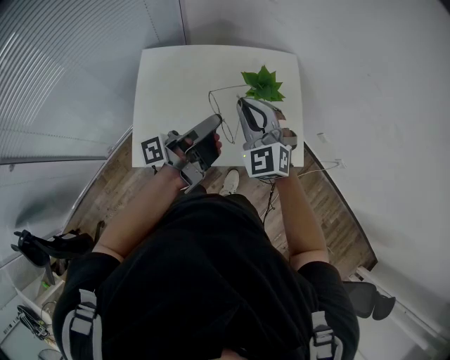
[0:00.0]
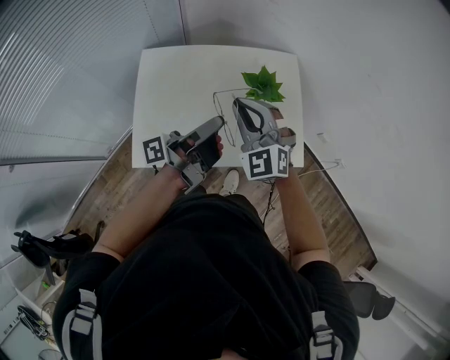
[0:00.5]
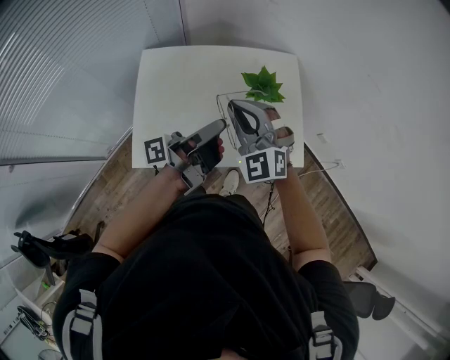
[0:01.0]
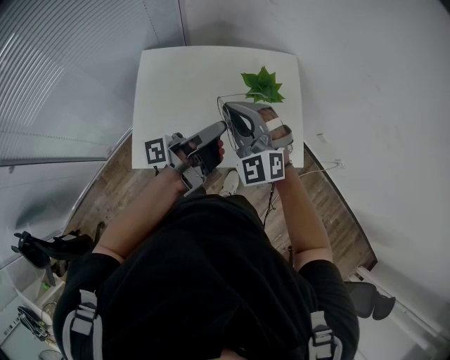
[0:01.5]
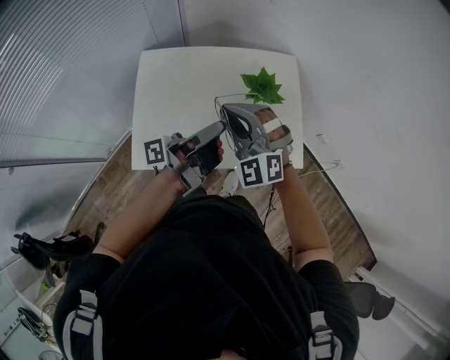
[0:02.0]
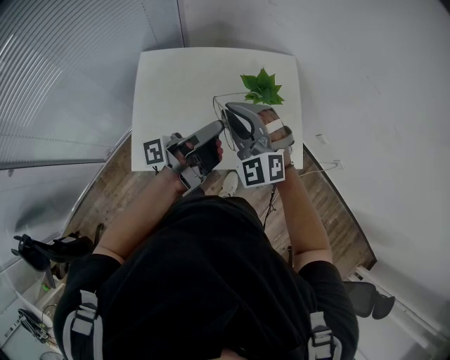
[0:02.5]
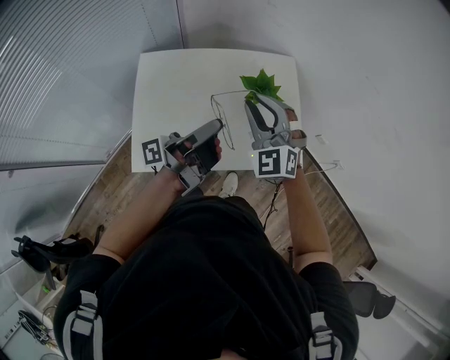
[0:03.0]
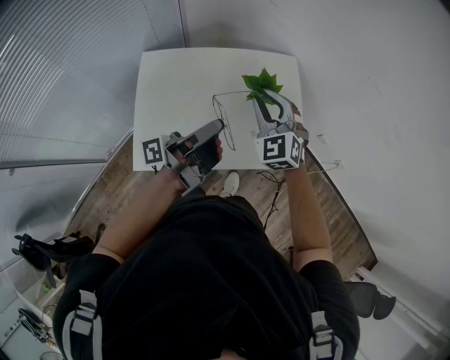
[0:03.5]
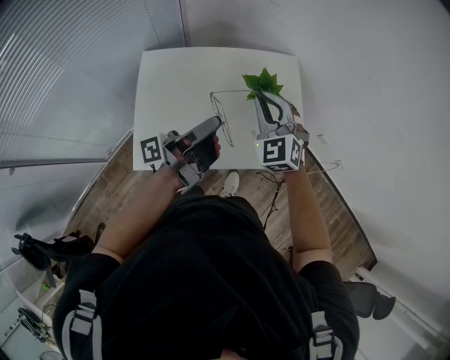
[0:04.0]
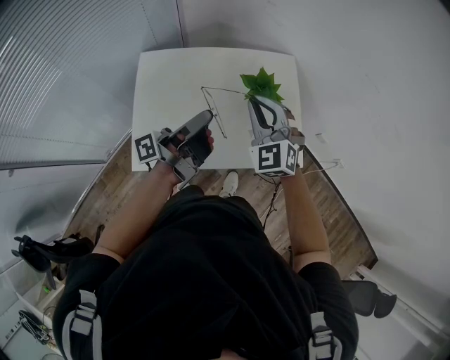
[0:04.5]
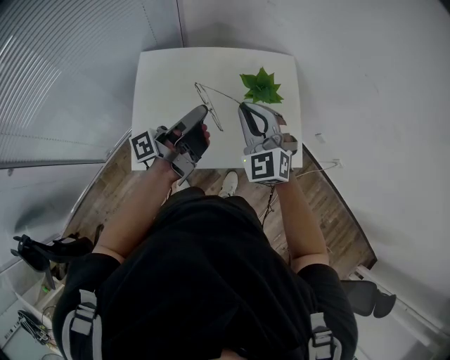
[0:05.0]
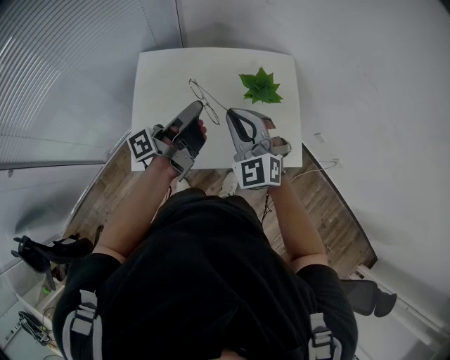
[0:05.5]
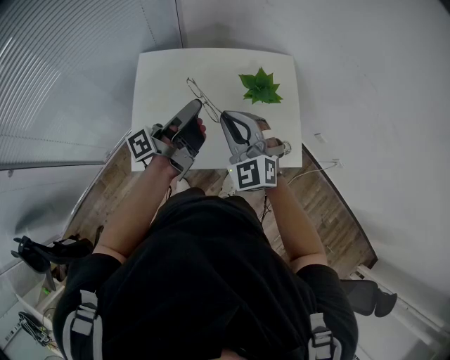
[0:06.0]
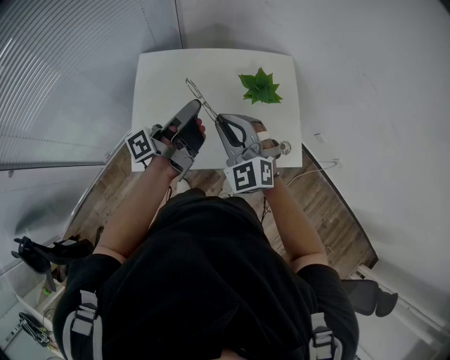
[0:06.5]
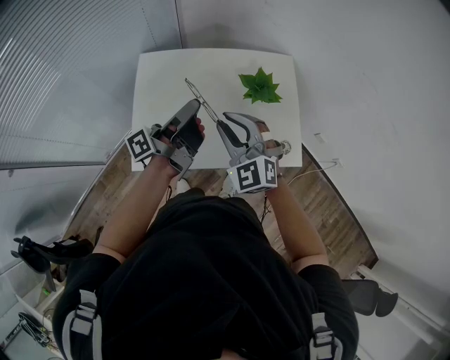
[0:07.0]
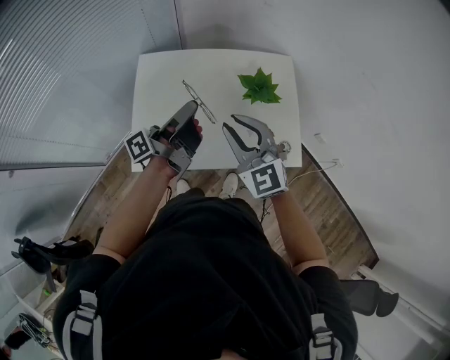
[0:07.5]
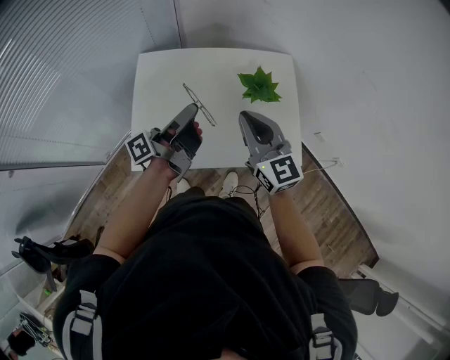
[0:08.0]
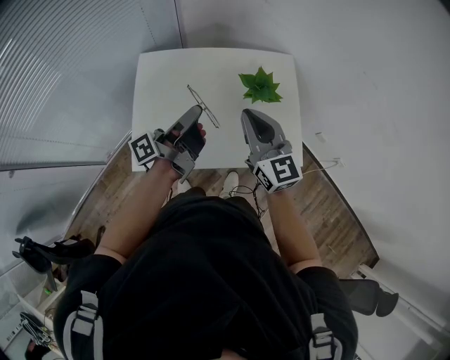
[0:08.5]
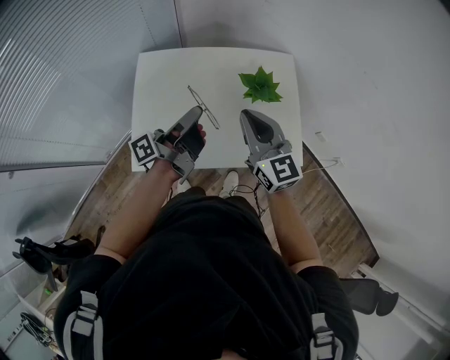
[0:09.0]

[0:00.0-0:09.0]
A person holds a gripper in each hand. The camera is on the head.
0:00.0 to 0:02.0: The right gripper ends up about 5 cm from where it was.
0:02.0 to 0:04.5: The right gripper changes place by approximately 10 cm, and turns by approximately 20 degrees.
0:04.5 to 0:07.0: The right gripper moves approximately 10 cm.
0:07.0 to 0:09.0: The right gripper moves approximately 5 cm, rotates some 40 degrees, and closes its fingers.

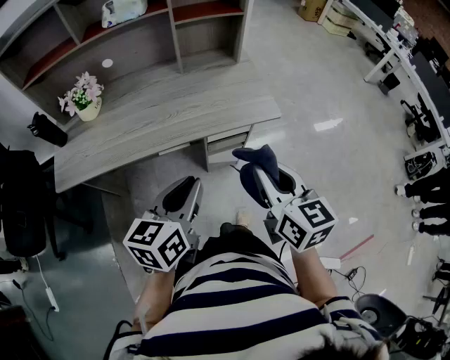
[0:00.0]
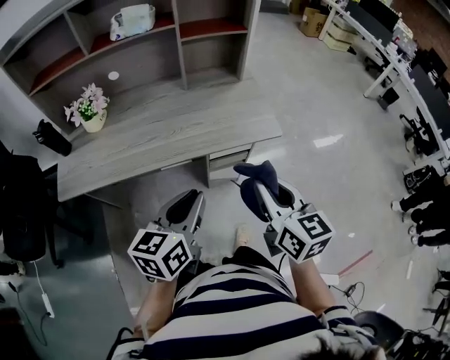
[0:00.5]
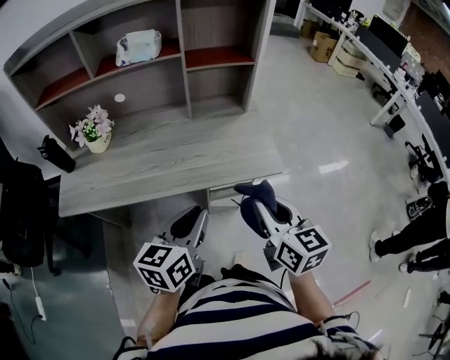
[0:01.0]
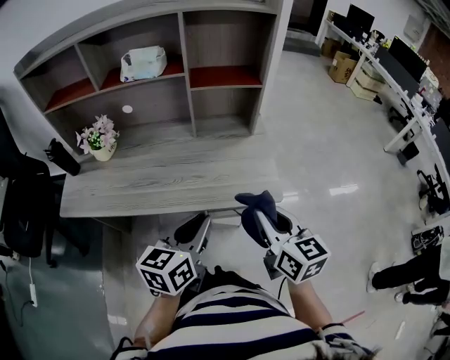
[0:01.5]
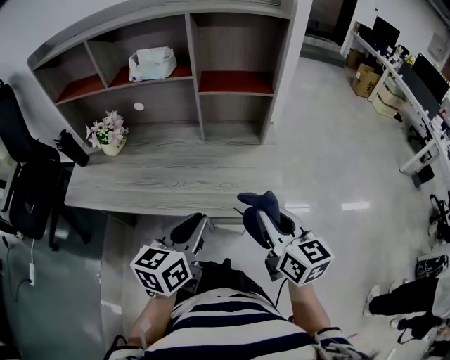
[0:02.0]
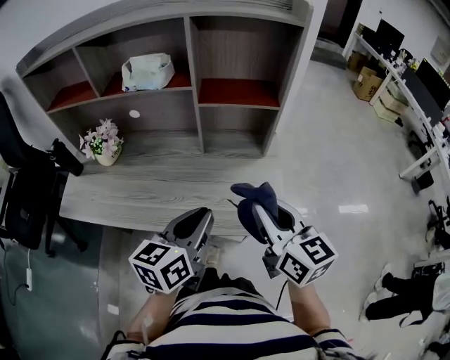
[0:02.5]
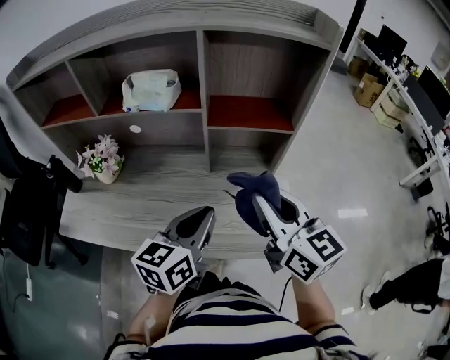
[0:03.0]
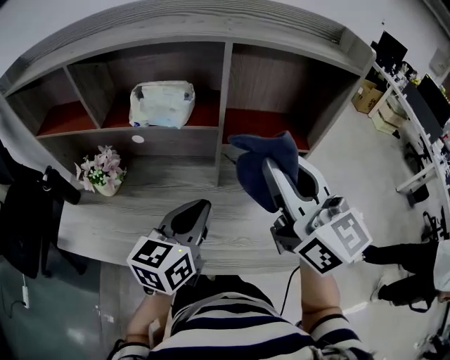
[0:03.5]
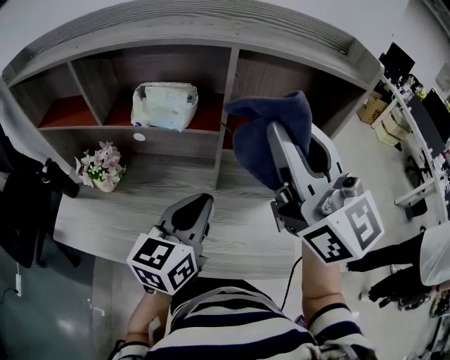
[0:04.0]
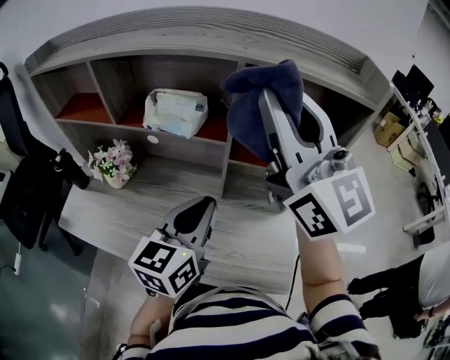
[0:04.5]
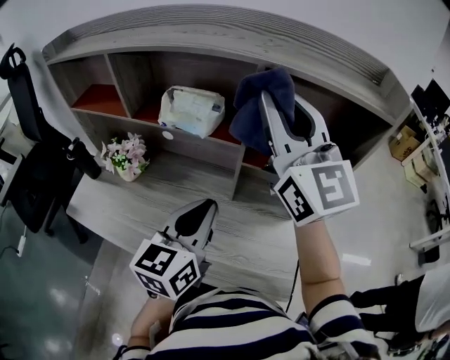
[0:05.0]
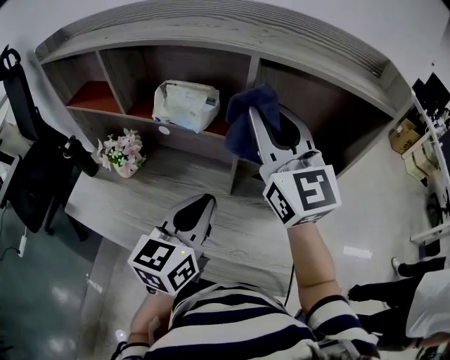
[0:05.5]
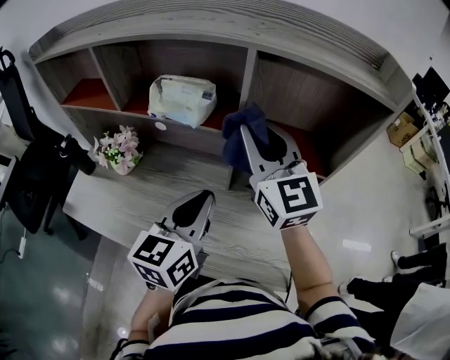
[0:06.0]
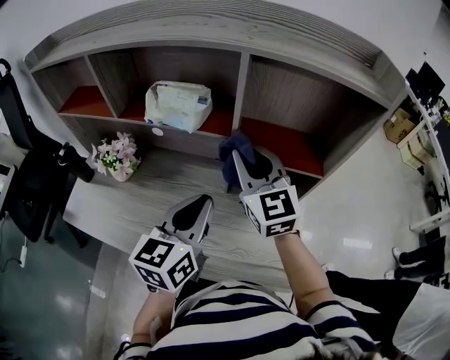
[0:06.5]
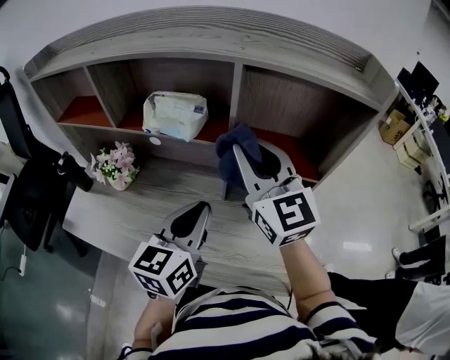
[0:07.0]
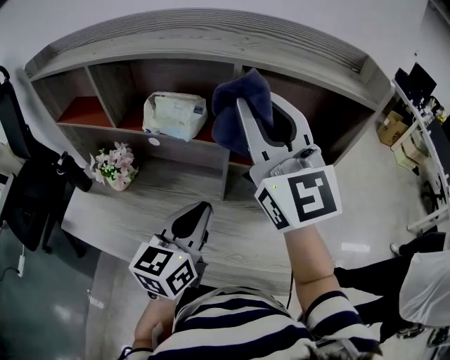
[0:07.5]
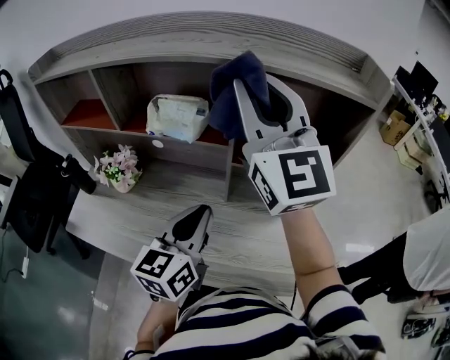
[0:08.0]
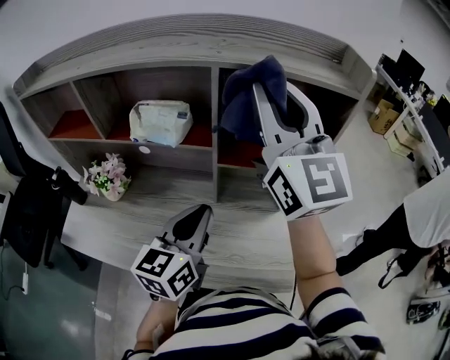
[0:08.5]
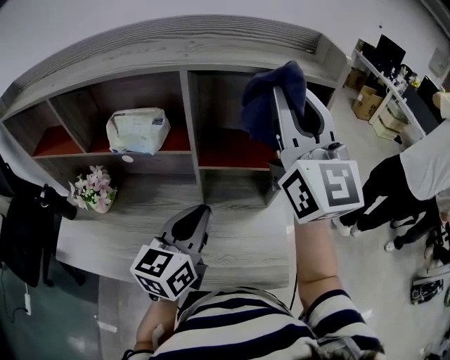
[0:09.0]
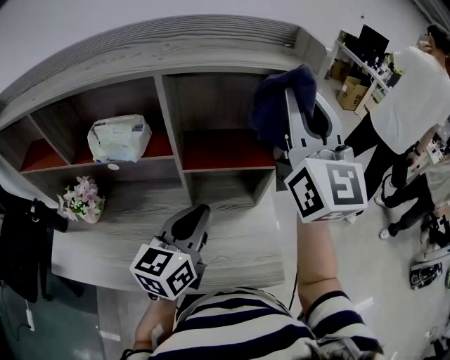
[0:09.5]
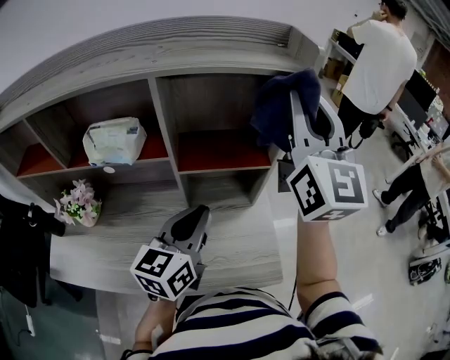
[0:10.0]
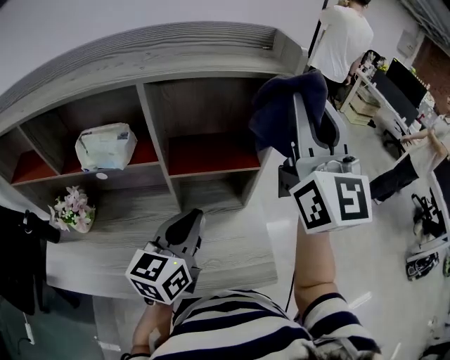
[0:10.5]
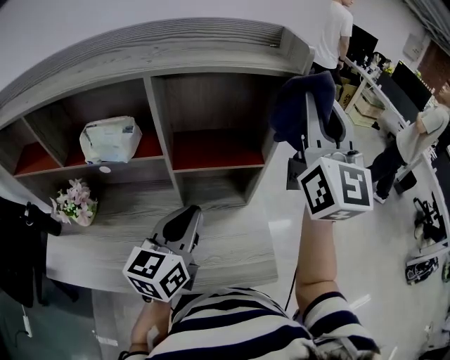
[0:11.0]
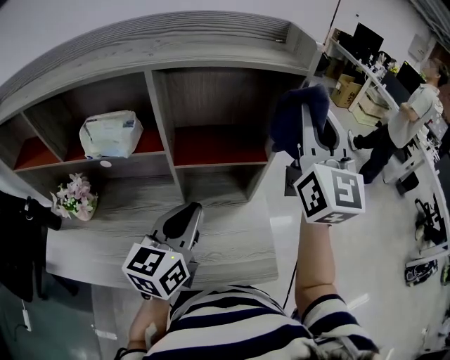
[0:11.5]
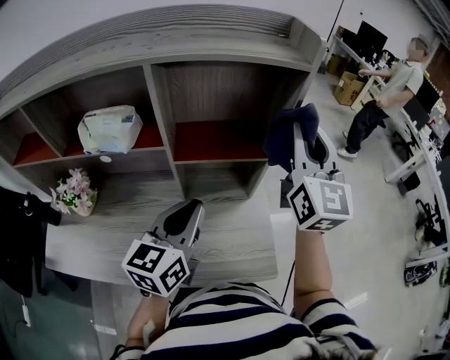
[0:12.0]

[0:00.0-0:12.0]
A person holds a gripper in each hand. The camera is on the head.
0:00.0 to 0:02.0: The right gripper is displaced forward by about 15 cm; the left gripper moves forward and to the right, some 15 cm.
0:02.0 to 0:04.0: The right gripper moves upward and forward, approximately 35 cm, and turns by about 40 degrees. The left gripper goes some 20 cm forward.
0:04.0 to 0:06.0: The right gripper is displaced downward and forward by approximately 15 cm.
0:06.0 to 0:08.0: The right gripper moves upward, approximately 15 cm.
0:08.0 to 0:10.0: The right gripper changes place by about 20 cm, and rotates approximately 30 degrees; the left gripper changes place by roughly 10 cm.
0:10.0 to 0:12.0: The right gripper is displaced downward by roughly 10 cm.

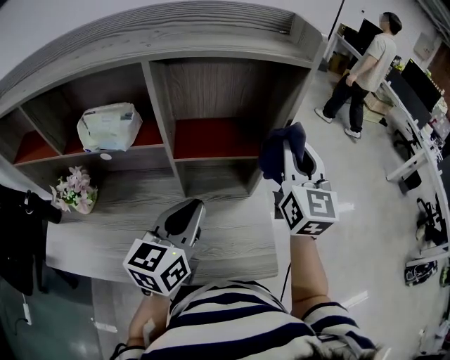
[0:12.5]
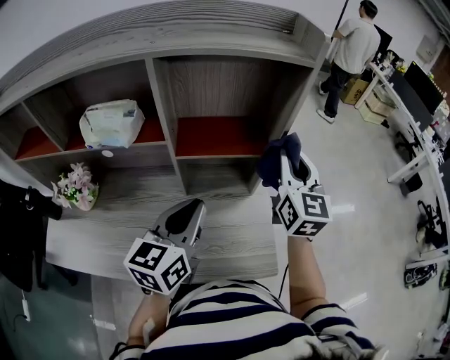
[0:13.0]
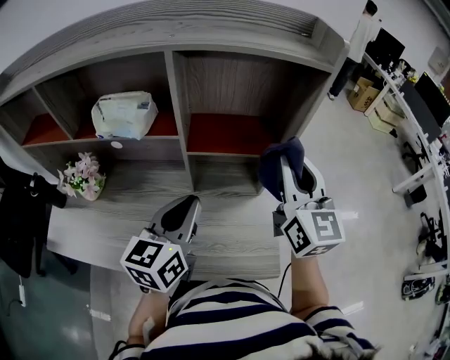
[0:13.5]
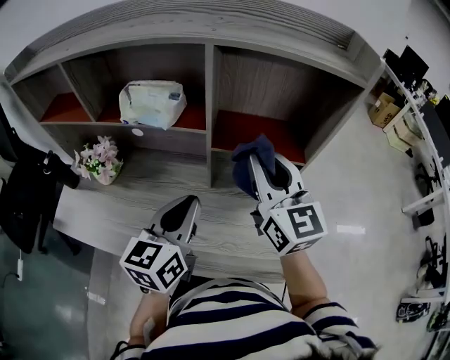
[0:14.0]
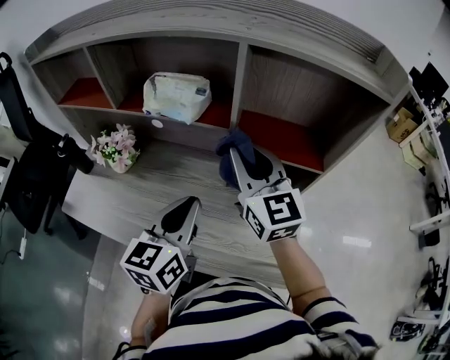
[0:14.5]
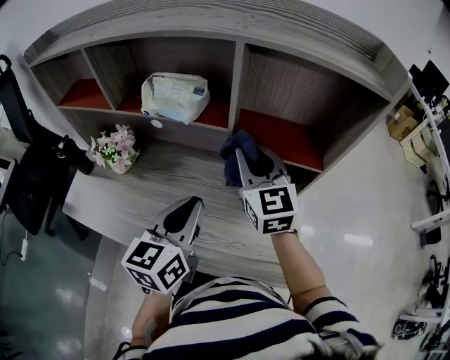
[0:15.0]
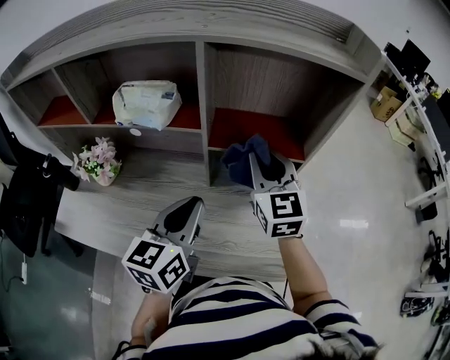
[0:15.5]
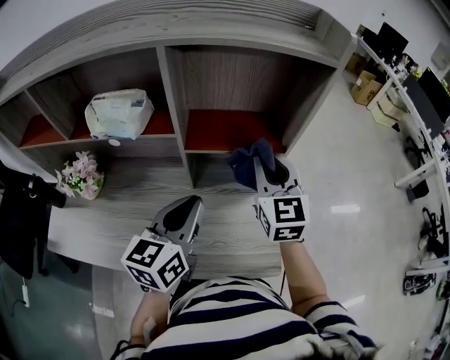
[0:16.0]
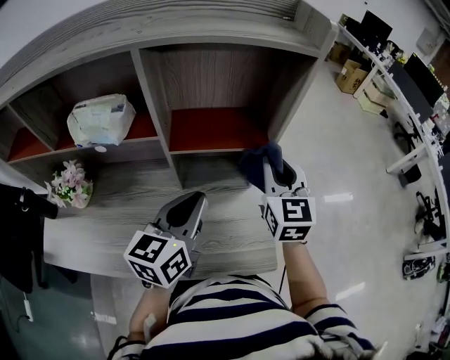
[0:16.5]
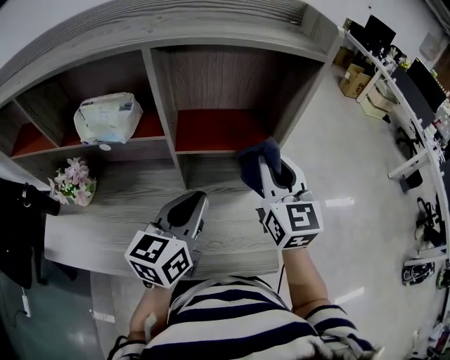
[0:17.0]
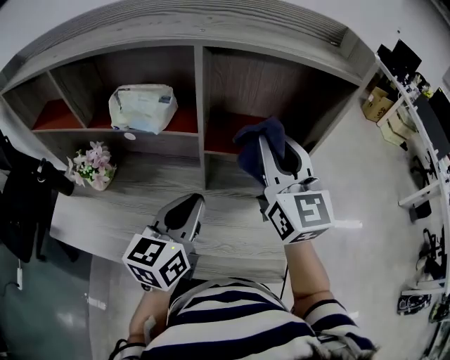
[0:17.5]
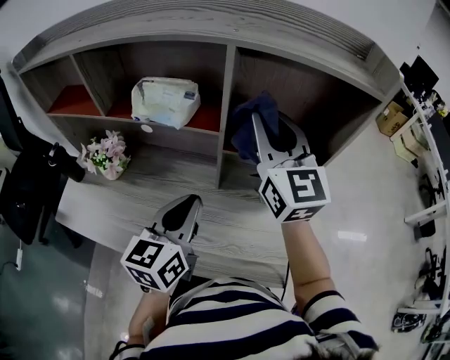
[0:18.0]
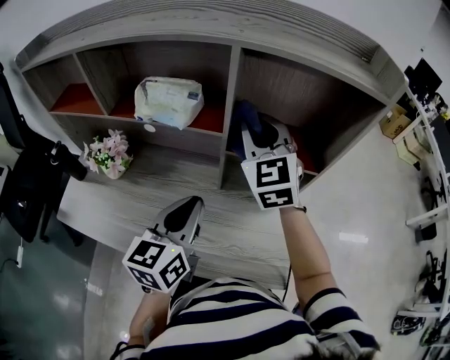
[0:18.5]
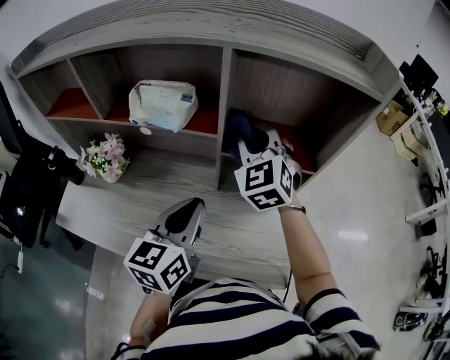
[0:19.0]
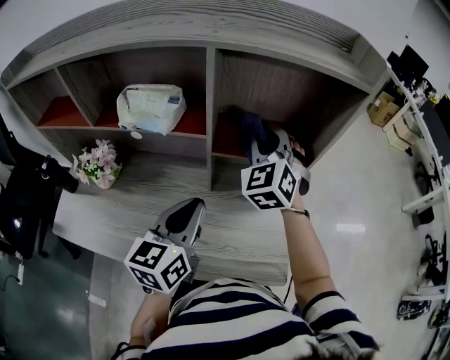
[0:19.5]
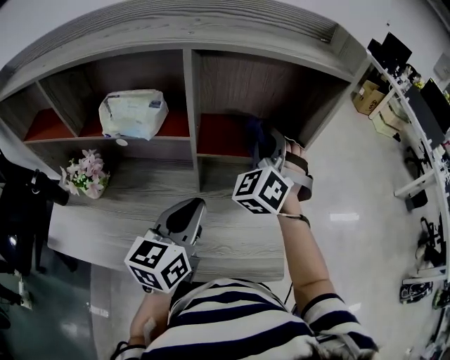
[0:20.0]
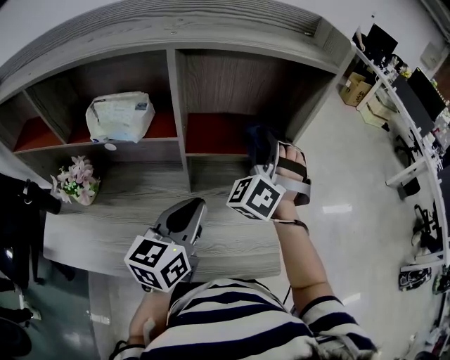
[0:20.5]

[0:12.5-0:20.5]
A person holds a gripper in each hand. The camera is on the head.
0:12.5 to 0:14.5: The right gripper shifts by about 25 cm, and swivels about 40 degrees; the left gripper ends up some 10 cm from where it was, and swivels some 20 degrees.
0:14.5 to 0:16.5: The right gripper shifts by about 20 cm, and swivels some 40 degrees, while the left gripper moves approximately 10 cm, and swivels approximately 20 degrees.
0:16.5 to 0:18.5: The right gripper is displaced to the left by approximately 20 cm, and turns by roughly 30 degrees. The left gripper heads to the left, covering approximately 10 cm.
0:18.5 to 0:20.5: The left gripper ends up about 5 cm from where it was, while the right gripper changes place by approximately 15 cm, and rotates roughly 60 degrees.
